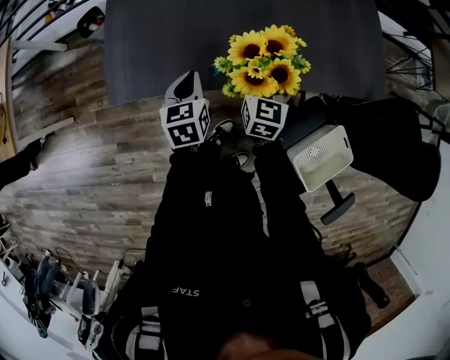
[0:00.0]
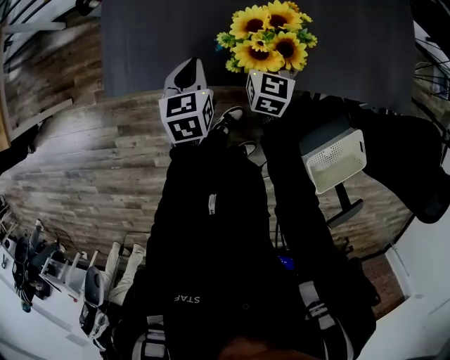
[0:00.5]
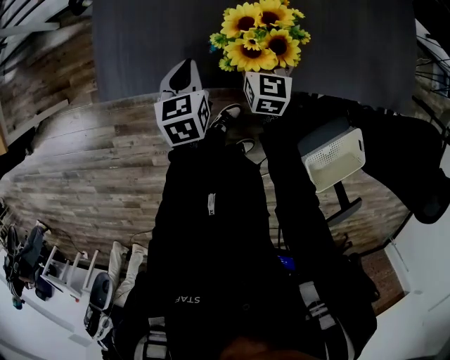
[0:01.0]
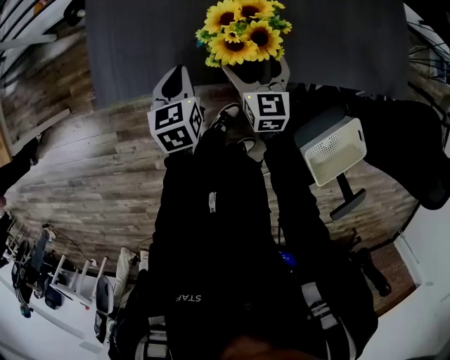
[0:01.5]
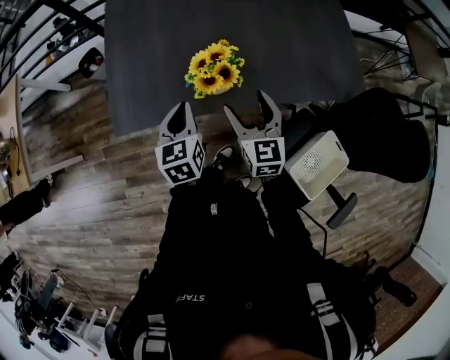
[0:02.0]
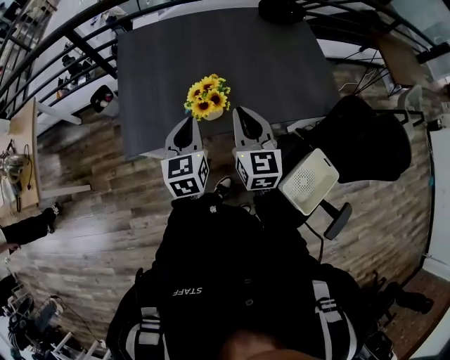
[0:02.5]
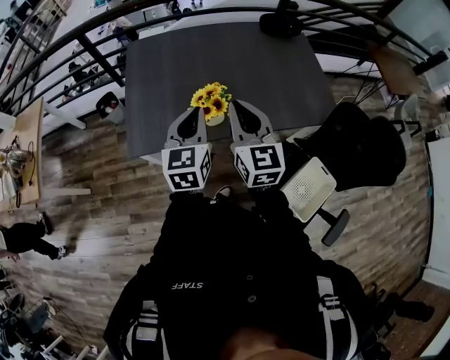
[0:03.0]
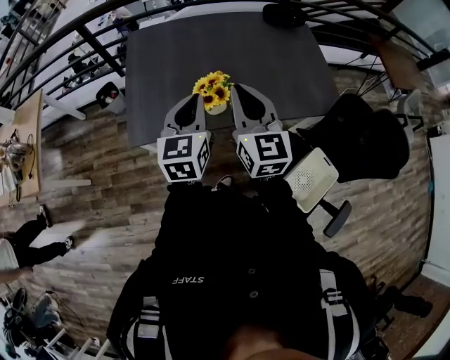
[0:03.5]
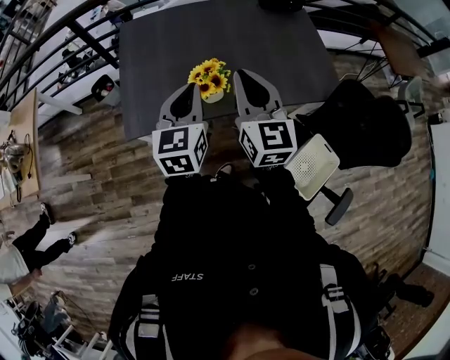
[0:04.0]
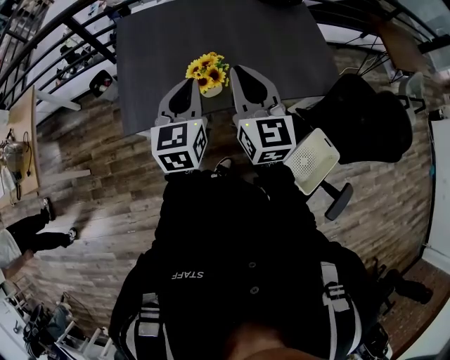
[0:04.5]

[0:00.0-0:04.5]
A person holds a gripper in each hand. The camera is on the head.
0:00.0 to 0:02.0: The left gripper moves upward, some 10 cm. Meanwhile the right gripper moves upward and backward, about 10 cm.
0:02.0 to 0:04.5: The two grippers go roughly 25 cm upward. The left gripper swivels some 20 degrees; the right gripper closes its fingers.

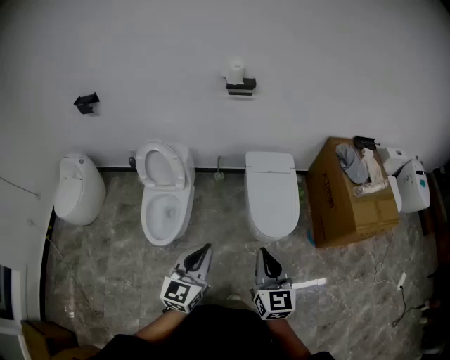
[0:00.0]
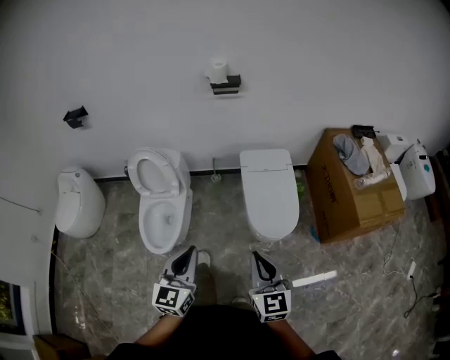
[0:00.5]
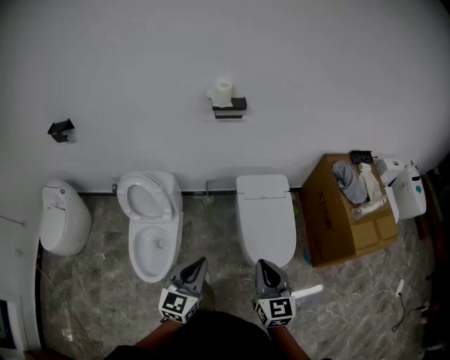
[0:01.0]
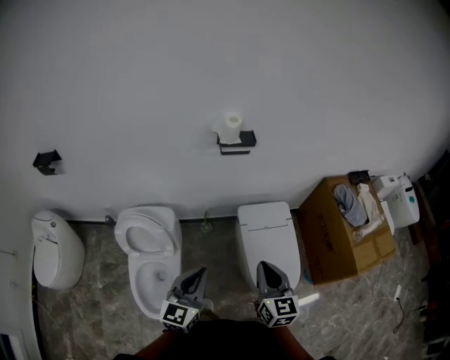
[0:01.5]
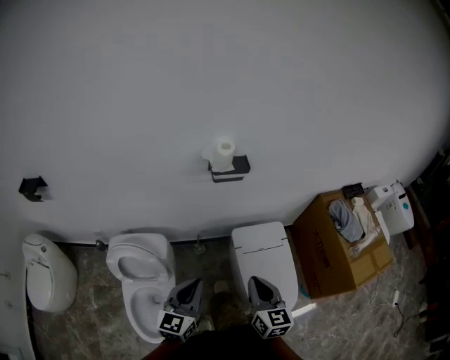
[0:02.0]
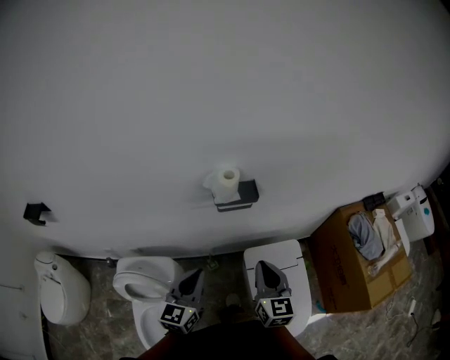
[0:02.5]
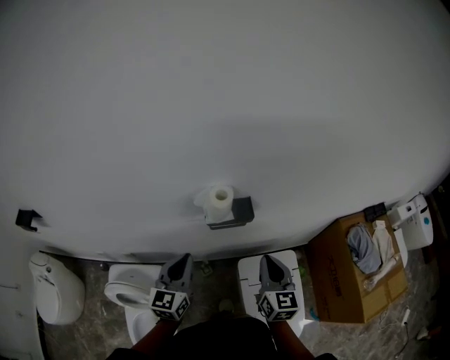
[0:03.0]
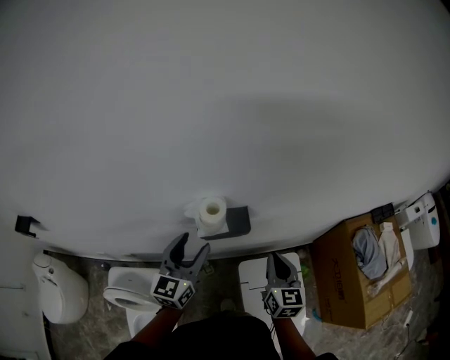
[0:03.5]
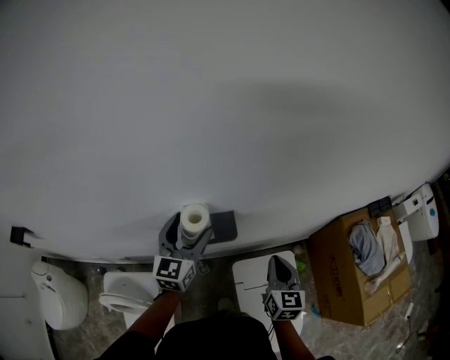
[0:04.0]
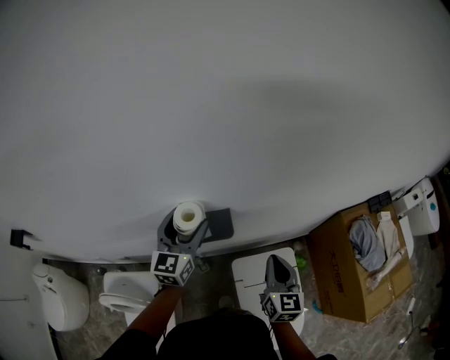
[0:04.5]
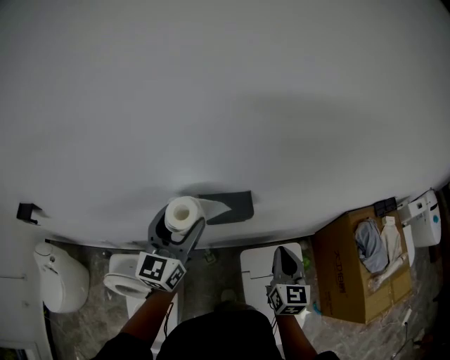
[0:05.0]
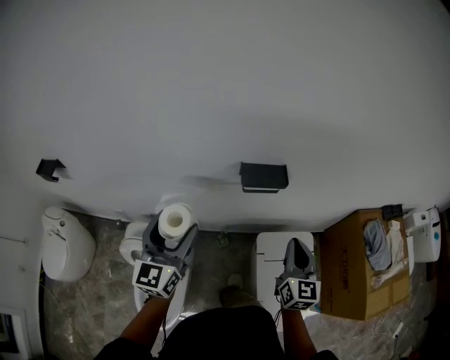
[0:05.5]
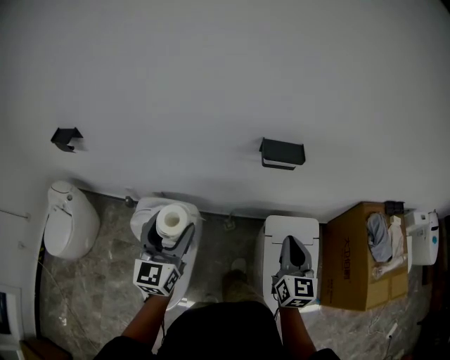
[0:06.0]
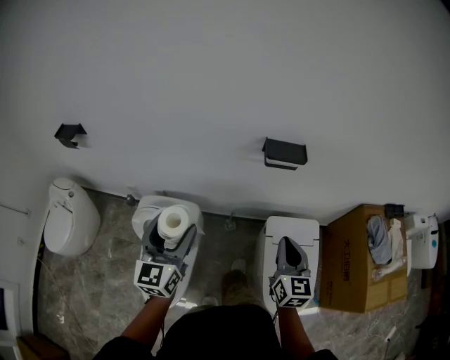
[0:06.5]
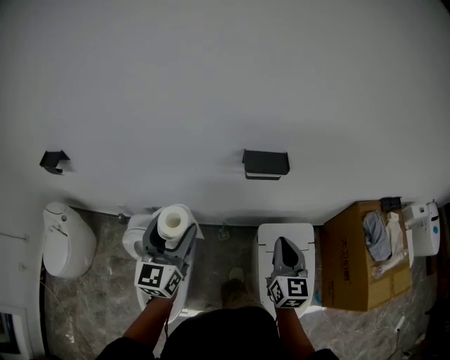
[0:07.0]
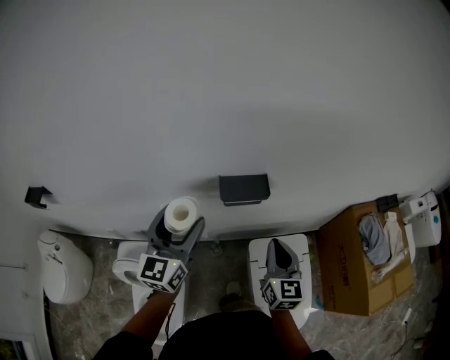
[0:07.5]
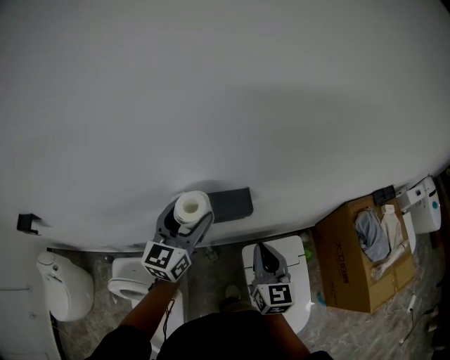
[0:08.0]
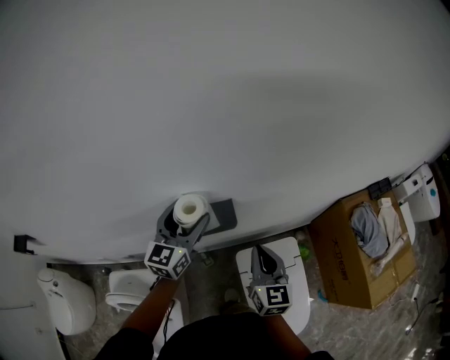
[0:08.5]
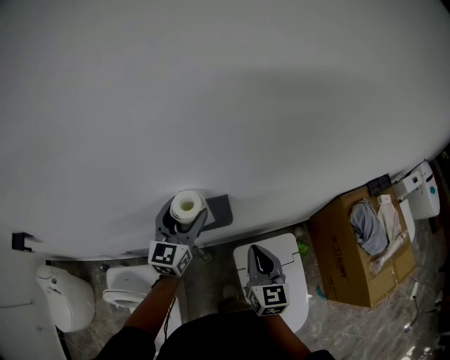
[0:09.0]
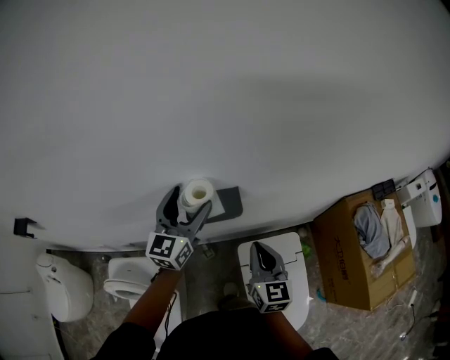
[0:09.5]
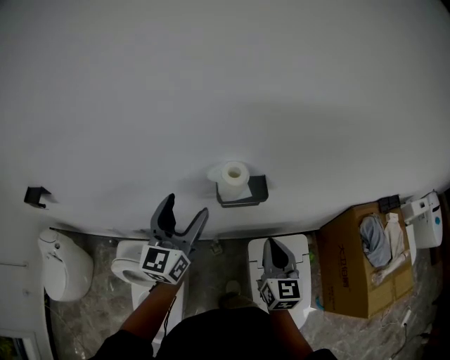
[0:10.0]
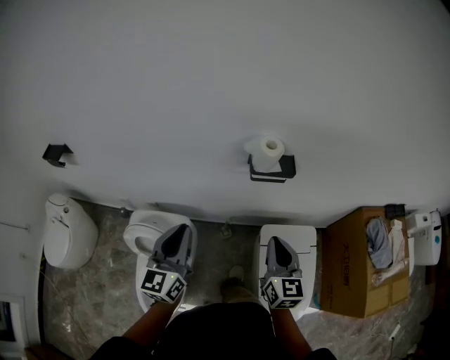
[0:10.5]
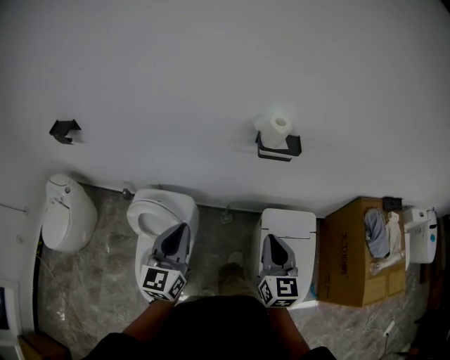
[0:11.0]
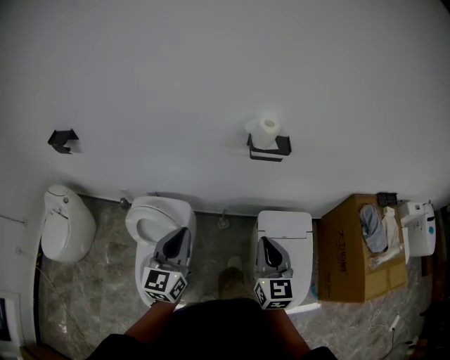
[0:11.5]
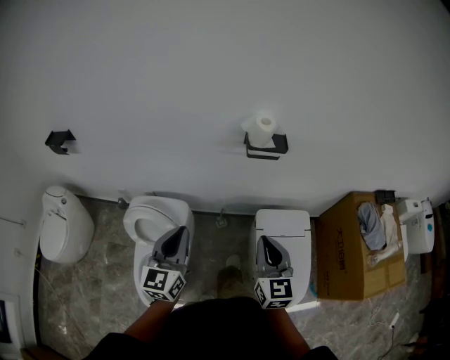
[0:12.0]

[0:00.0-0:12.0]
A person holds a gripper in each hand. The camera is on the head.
0:00.0 to 0:02.0: The pair of grippers is taken forward, approximately 50 cm.
0:02.0 to 0:04.0: The pair of grippers is taken forward, roughly 50 cm. The left gripper opens up.
0:04.0 to 0:06.0: The left gripper shifts approximately 50 cm backward and to the left; the right gripper heads backward and to the left, covering approximately 30 cm.
0:06.0 to 0:08.0: The right gripper heads forward, covering roughly 20 cm. The left gripper heads forward and to the right, covering about 40 cm, and rotates approximately 20 degrees.
0:08.0 to 0:10.0: The left gripper heads backward and to the left, covering roughly 10 cm.
0:10.0 to 0:12.0: The right gripper heads backward and to the left, covering approximately 25 cm. Meanwhile the left gripper travels backward by approximately 30 cm, and closes up.

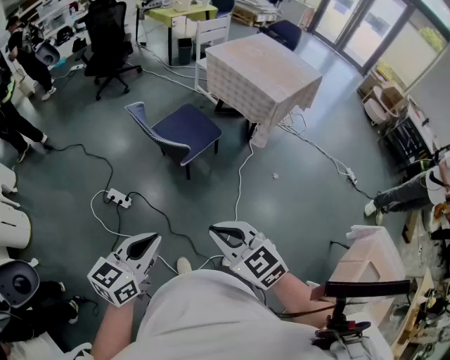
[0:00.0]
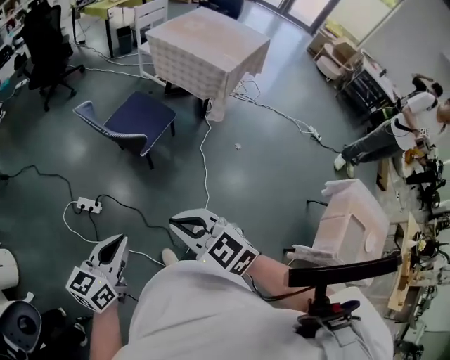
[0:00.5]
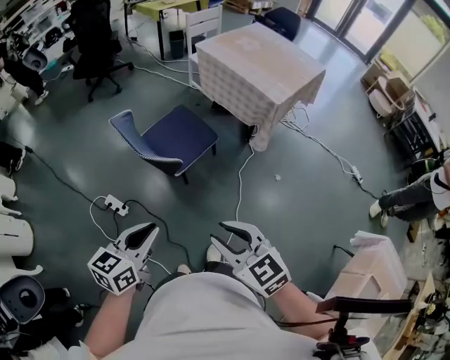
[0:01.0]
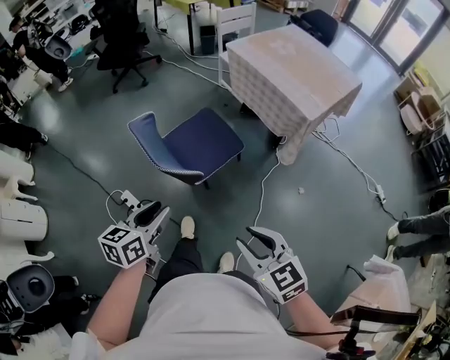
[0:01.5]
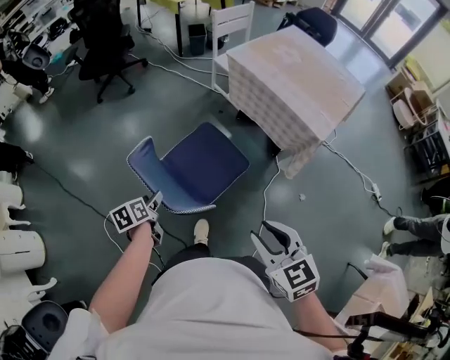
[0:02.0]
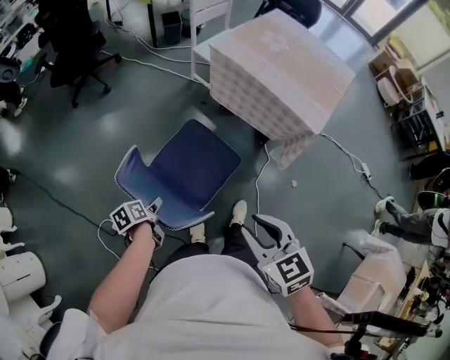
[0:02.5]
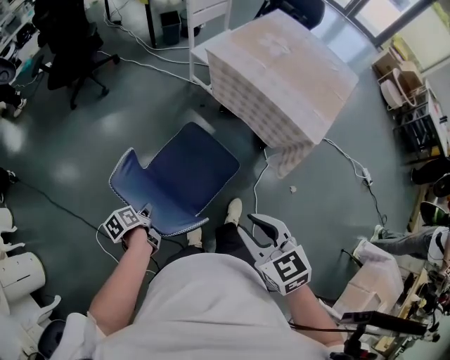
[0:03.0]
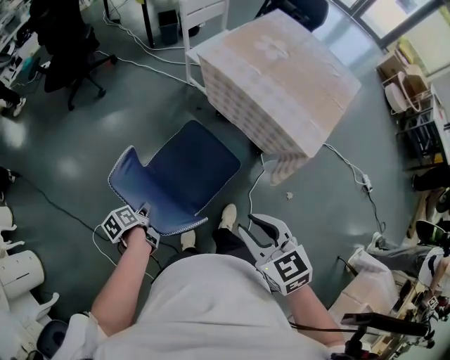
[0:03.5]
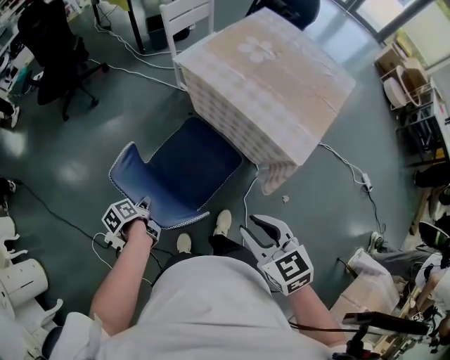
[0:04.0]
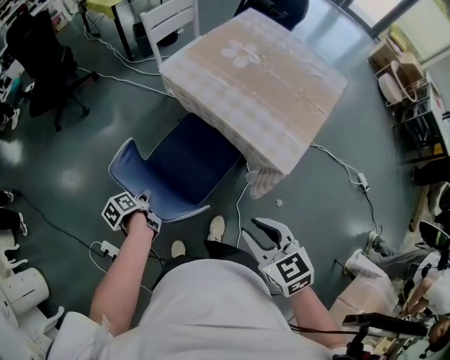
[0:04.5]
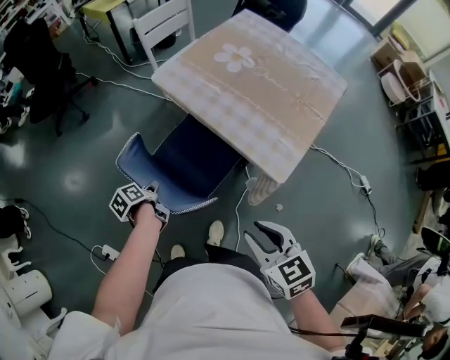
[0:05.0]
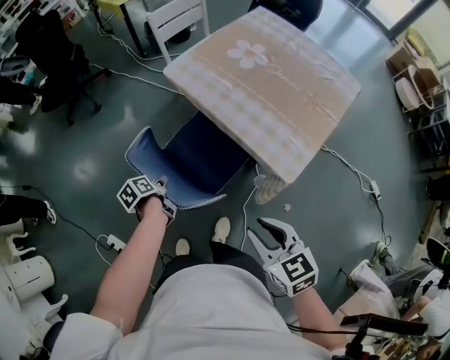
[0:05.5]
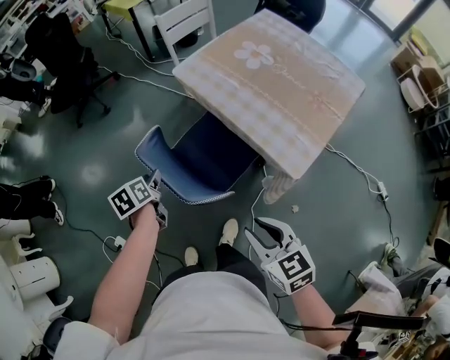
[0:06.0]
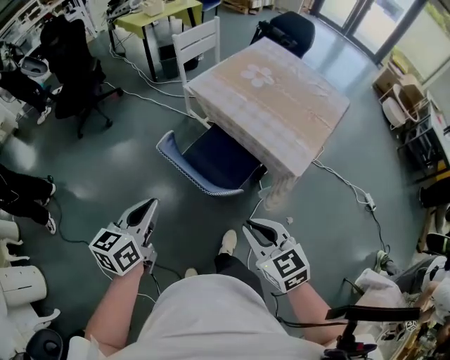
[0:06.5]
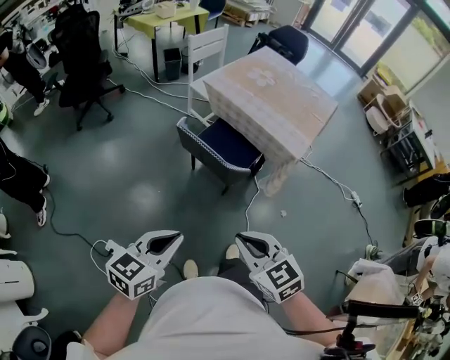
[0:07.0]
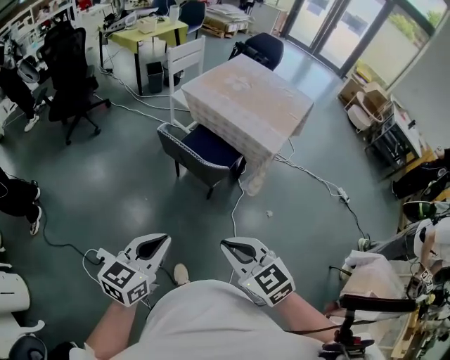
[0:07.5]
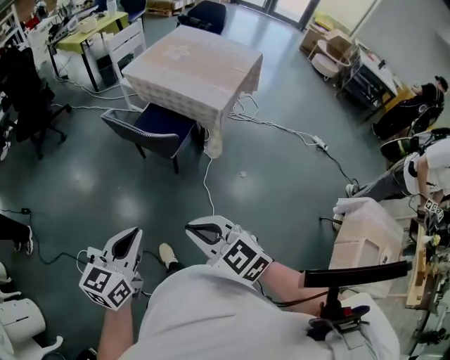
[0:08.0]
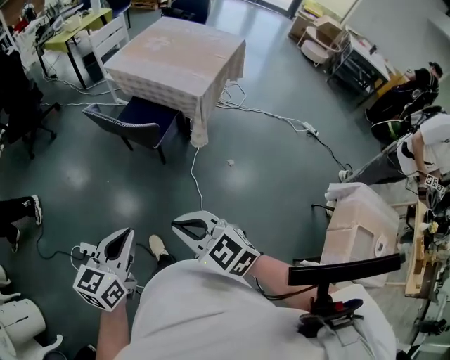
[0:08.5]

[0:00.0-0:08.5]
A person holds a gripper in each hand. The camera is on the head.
0:00.0 to 0:02.0: The left gripper moves forward and downward, some 60 cm, changes its angle by about 50 degrees, and opens up; the right gripper heads forward, covering roughly 35 cm, and opens.
0:02.0 to 0:04.0: Both grippers travel together forward and to the right, approximately 25 cm. The left gripper rotates some 20 degrees, and closes up.
0:04.0 to 0:06.5: The right gripper moves roughly 10 cm to the right and comes back. The left gripper moves upward, some 25 cm, rotates around the line of its fingers by roughly 50 degrees, clockwise from behind, and opens and closes again.
0:06.5 to 0:08.5: The two grippers go about 35 cm backward.

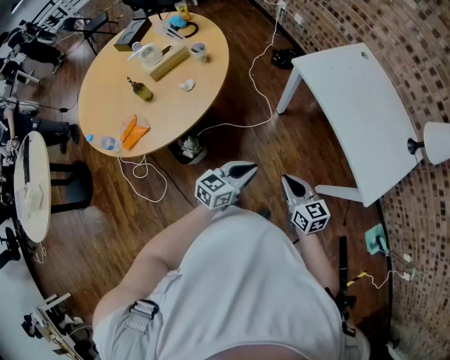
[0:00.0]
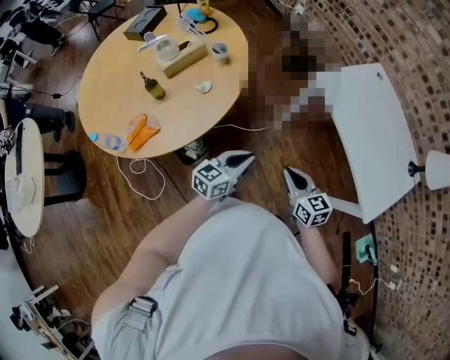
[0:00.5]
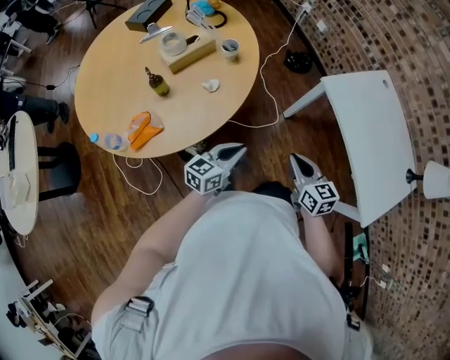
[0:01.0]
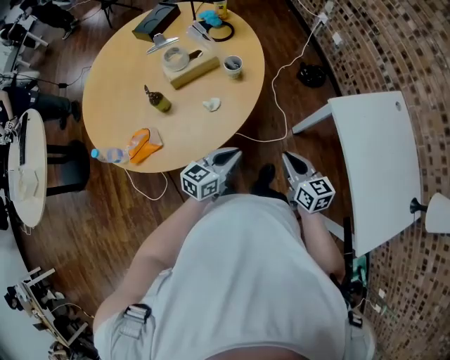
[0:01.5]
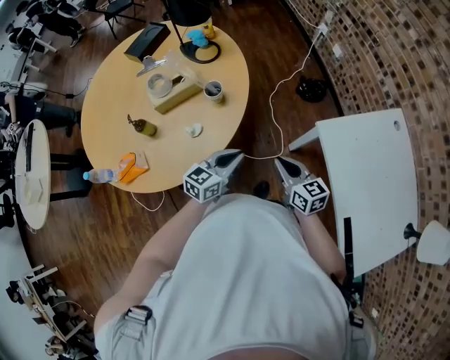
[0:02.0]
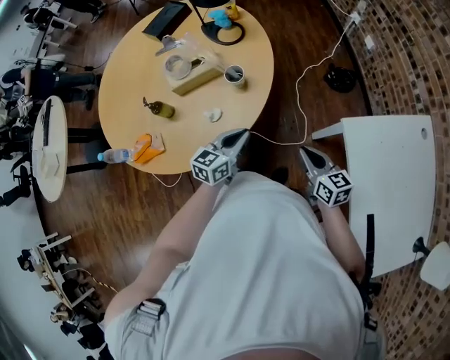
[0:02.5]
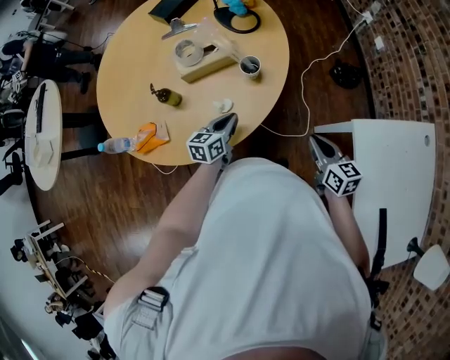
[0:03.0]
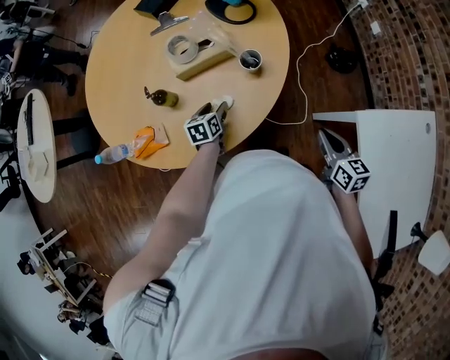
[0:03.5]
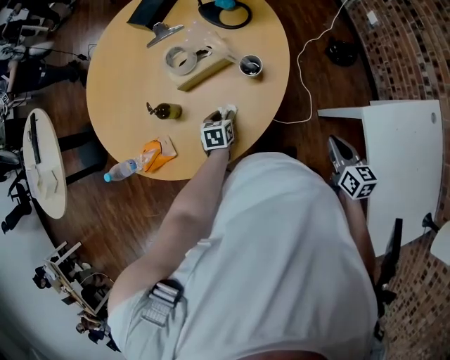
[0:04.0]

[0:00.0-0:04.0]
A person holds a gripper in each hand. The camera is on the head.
0:00.0 to 0:02.0: Both grippers travel together forward, about 35 cm.
0:02.0 to 0:04.0: The left gripper travels to the left, downward and forward by about 30 cm, tips its fingers downward by roughly 40 degrees, and opens. The right gripper goes approximately 5 cm forward.
